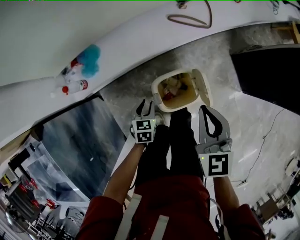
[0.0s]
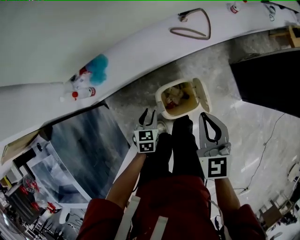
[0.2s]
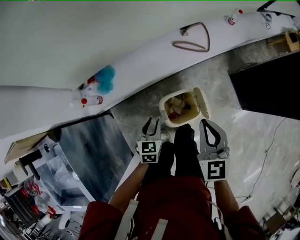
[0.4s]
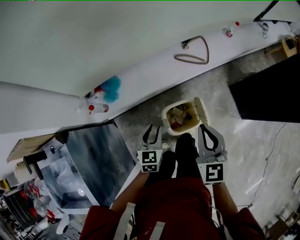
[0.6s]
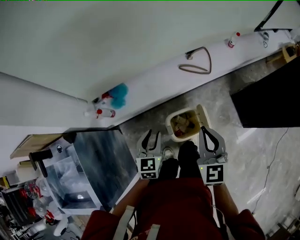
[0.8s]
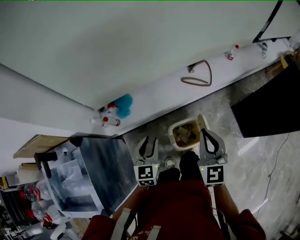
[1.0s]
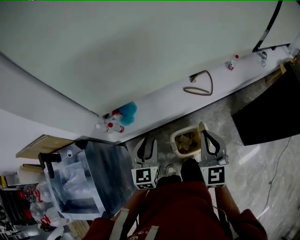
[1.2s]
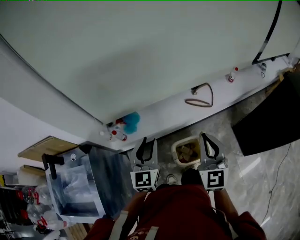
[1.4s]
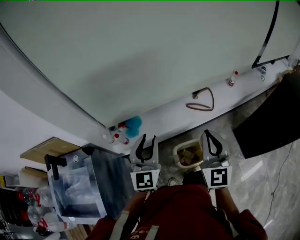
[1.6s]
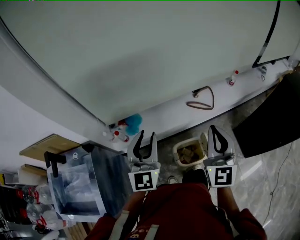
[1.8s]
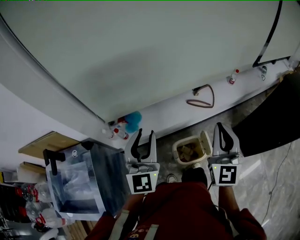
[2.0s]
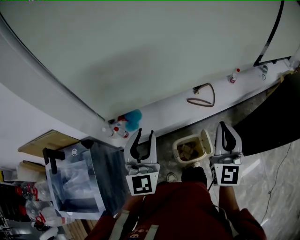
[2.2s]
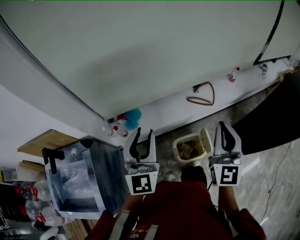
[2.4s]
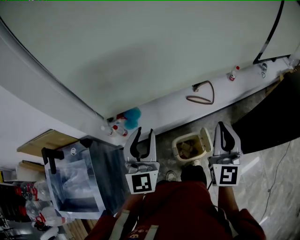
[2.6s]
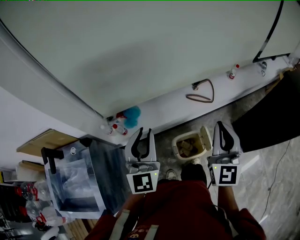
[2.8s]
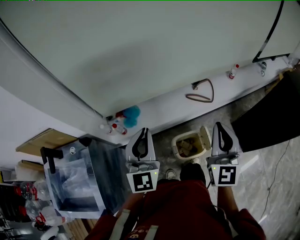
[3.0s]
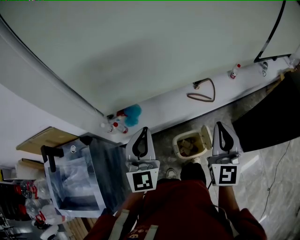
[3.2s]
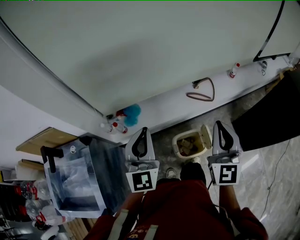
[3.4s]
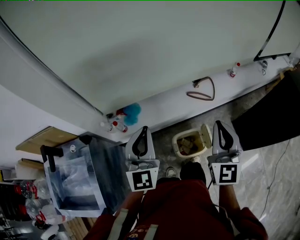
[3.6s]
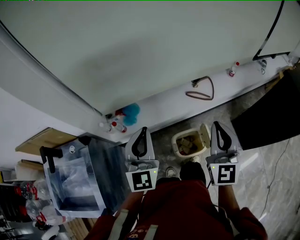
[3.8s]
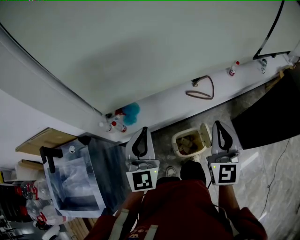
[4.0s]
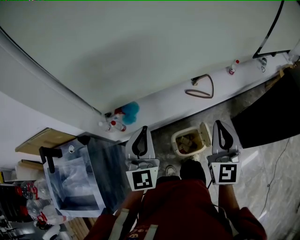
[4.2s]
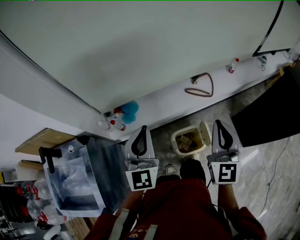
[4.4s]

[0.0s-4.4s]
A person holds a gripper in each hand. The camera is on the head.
0.0s to 1.4s: The right gripper travels upward by about 25 cm, and turns by about 30 degrees; the left gripper moves upward, some 40 cm, and tips its fingers upward by some 40 degrees.
1.4s to 3.0s: The right gripper heads upward, covering roughly 5 cm, while the left gripper shifts some 10 cm upward, and closes.
3.0s to 4.4s: There are only small adjustments of the grippers.

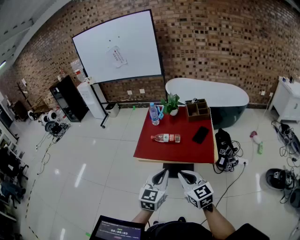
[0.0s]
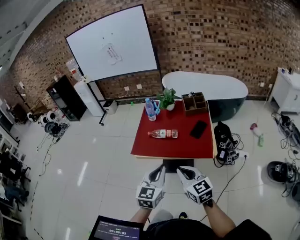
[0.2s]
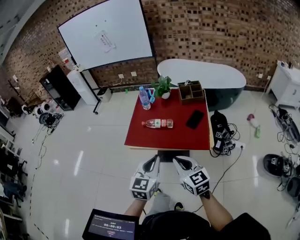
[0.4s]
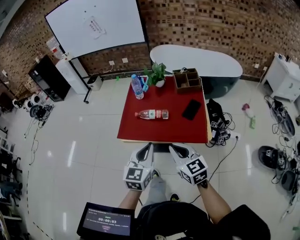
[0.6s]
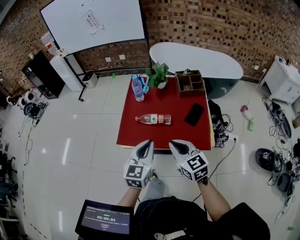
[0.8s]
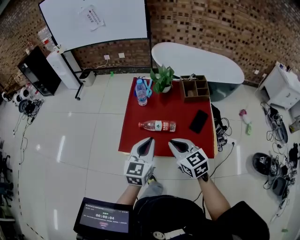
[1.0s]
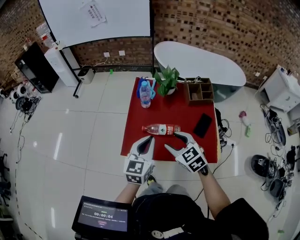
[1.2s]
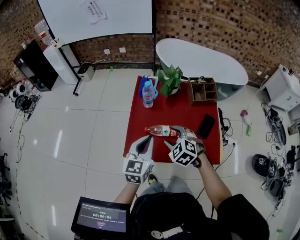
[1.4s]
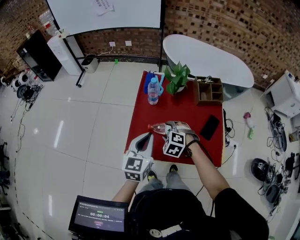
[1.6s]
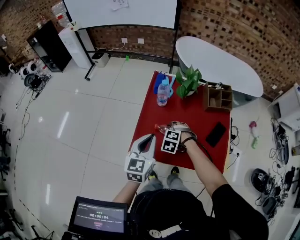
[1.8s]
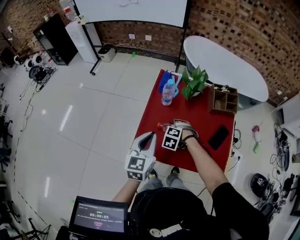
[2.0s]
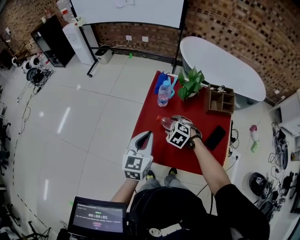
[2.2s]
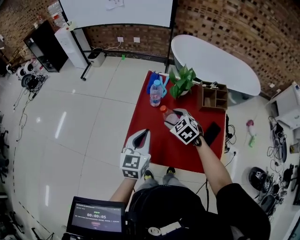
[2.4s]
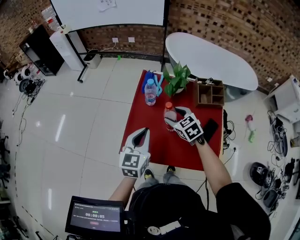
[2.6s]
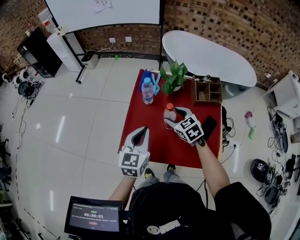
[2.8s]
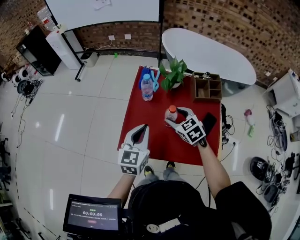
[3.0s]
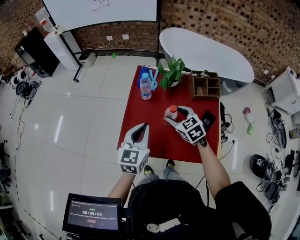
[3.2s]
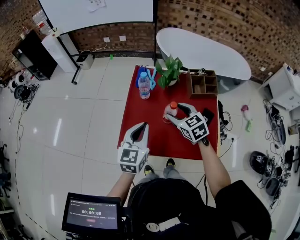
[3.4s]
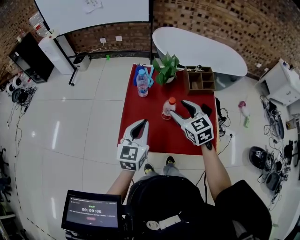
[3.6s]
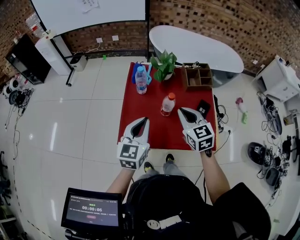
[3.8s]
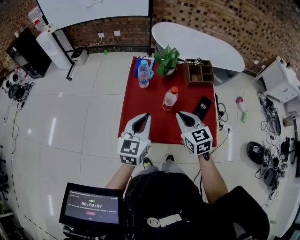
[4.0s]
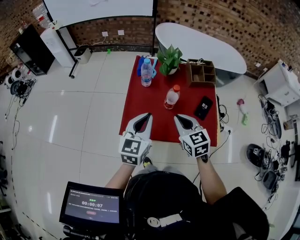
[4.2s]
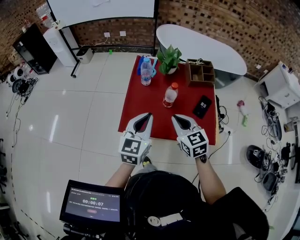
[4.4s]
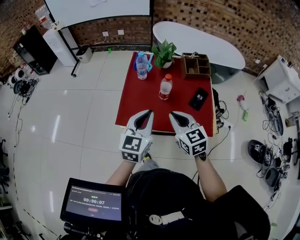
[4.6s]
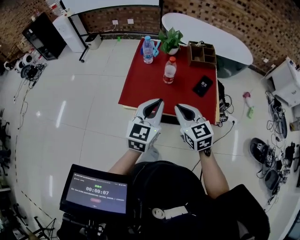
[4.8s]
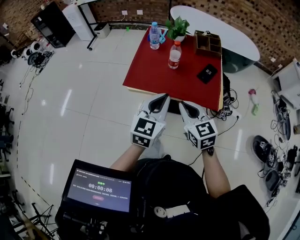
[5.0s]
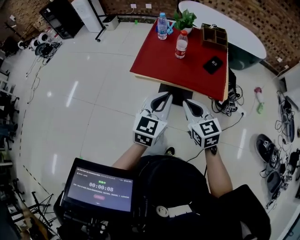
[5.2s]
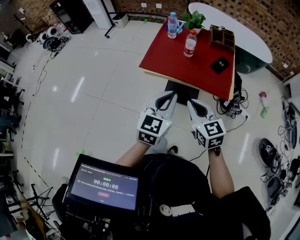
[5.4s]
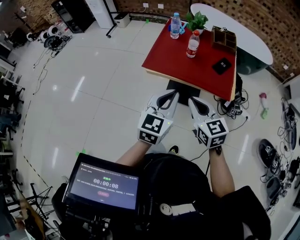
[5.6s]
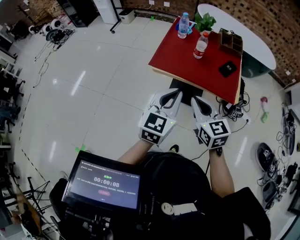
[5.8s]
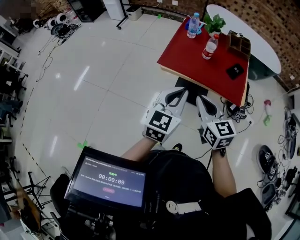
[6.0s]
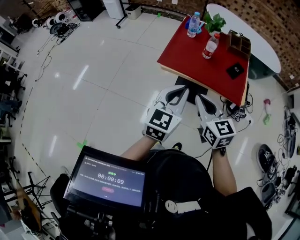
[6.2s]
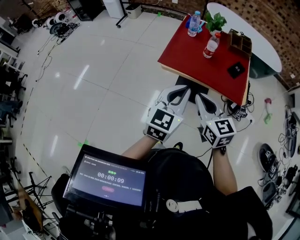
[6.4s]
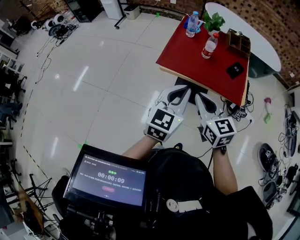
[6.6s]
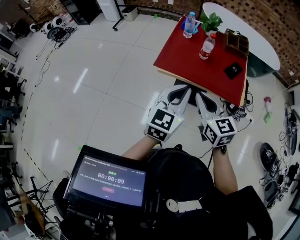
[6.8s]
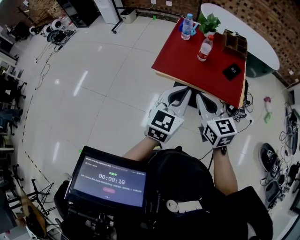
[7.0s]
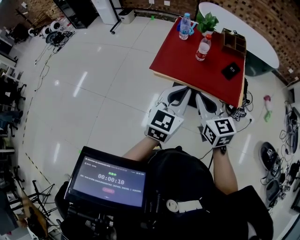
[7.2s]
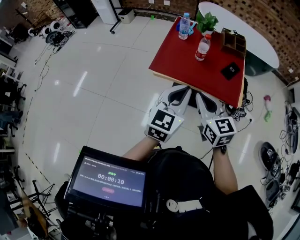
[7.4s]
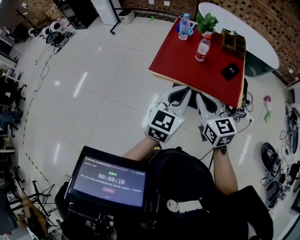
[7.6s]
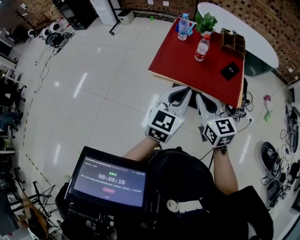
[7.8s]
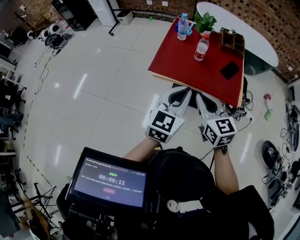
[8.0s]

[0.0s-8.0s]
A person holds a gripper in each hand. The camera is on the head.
0.0s to 1.6s: The left gripper heads forward, covering about 35 cm. The right gripper moves forward and downward, some 40 cm, tips its fingers downward by roughly 50 degrees, and opens its fingers.
1.6s to 3.2s: The right gripper is displaced to the right and upward by some 10 cm, and turns by about 40 degrees.
3.2s to 4.8s: The grippers both shift backward by about 20 cm. The right gripper closes its fingers.
4.8s to 6.4s: Both grippers move backward and to the left, some 20 cm.
6.4s to 8.0s: The left gripper heads to the right, covering about 5 cm. The right gripper changes place by approximately 5 cm.

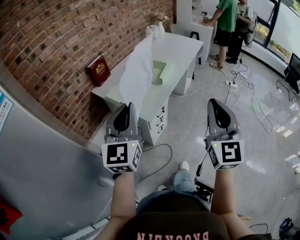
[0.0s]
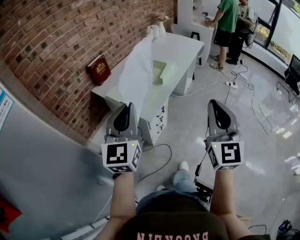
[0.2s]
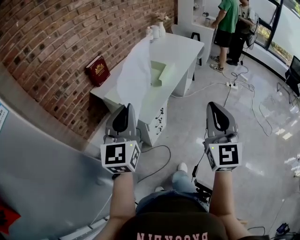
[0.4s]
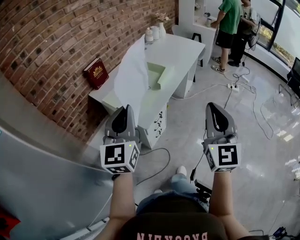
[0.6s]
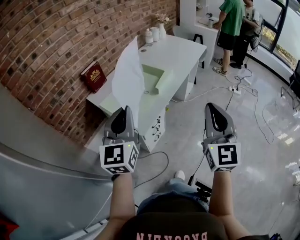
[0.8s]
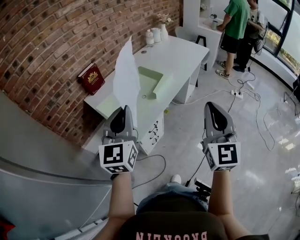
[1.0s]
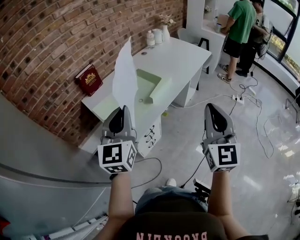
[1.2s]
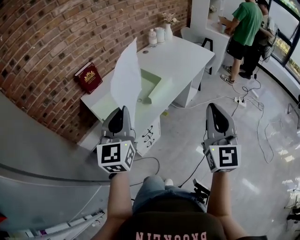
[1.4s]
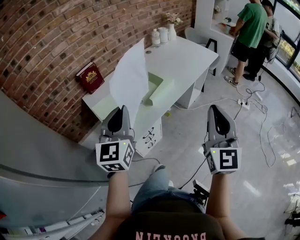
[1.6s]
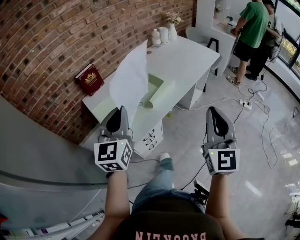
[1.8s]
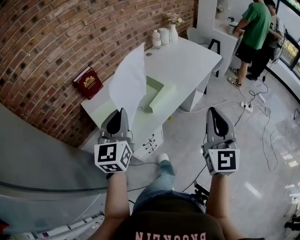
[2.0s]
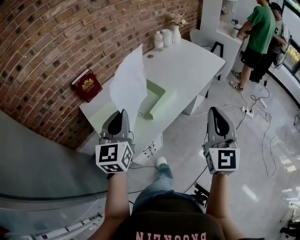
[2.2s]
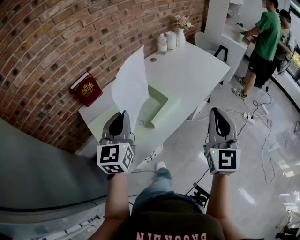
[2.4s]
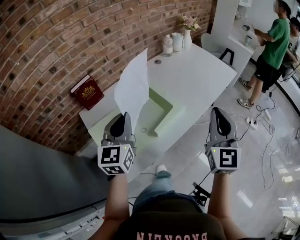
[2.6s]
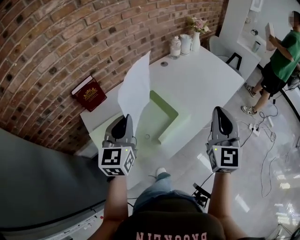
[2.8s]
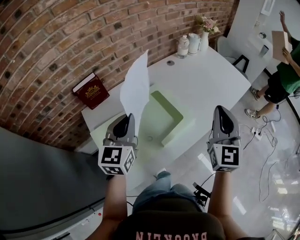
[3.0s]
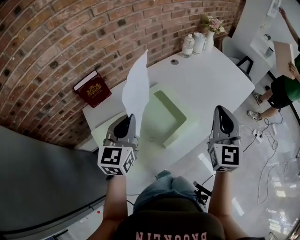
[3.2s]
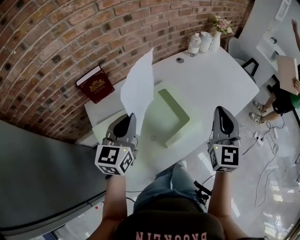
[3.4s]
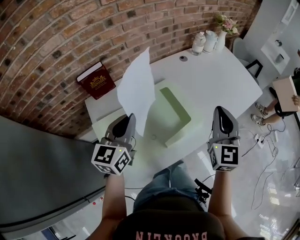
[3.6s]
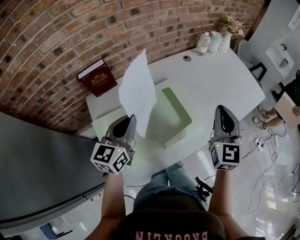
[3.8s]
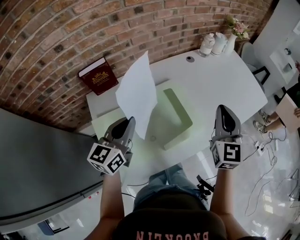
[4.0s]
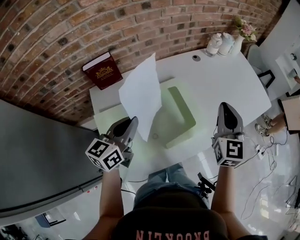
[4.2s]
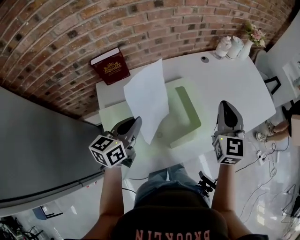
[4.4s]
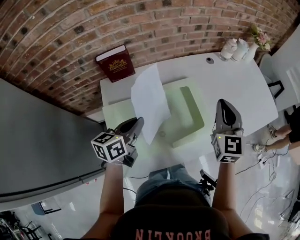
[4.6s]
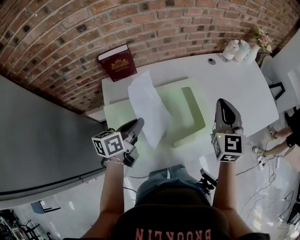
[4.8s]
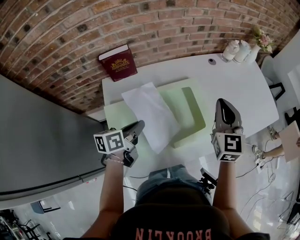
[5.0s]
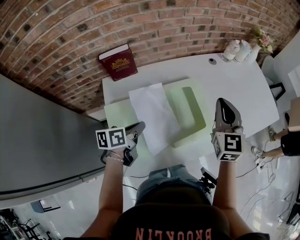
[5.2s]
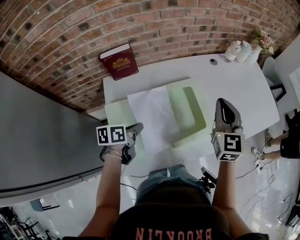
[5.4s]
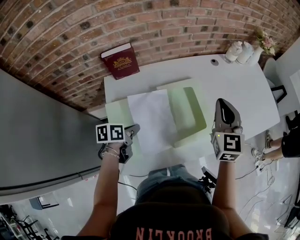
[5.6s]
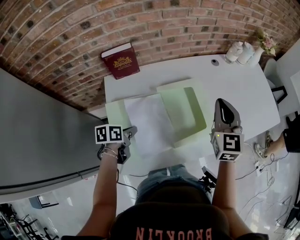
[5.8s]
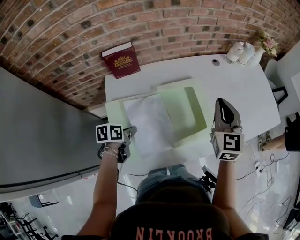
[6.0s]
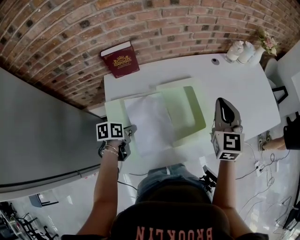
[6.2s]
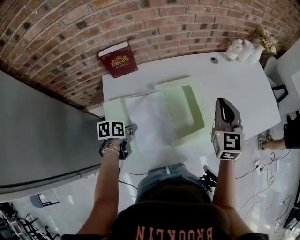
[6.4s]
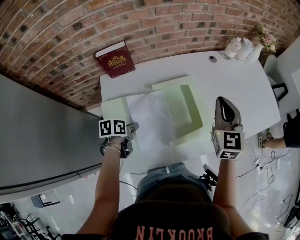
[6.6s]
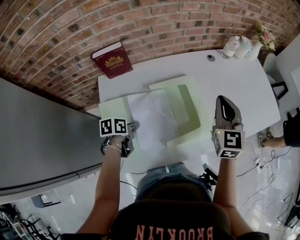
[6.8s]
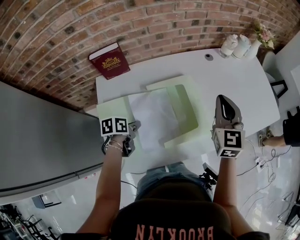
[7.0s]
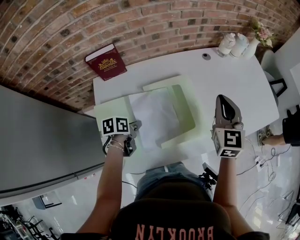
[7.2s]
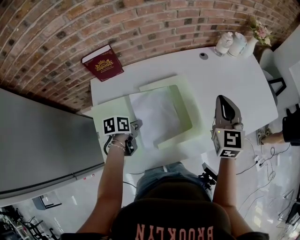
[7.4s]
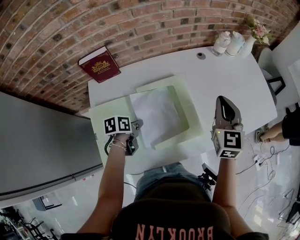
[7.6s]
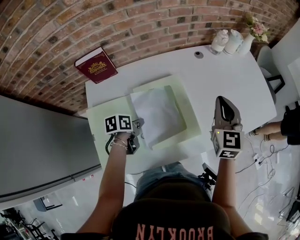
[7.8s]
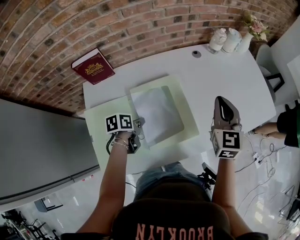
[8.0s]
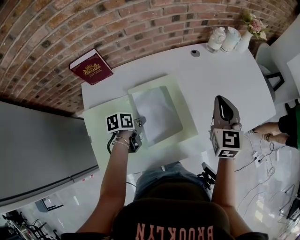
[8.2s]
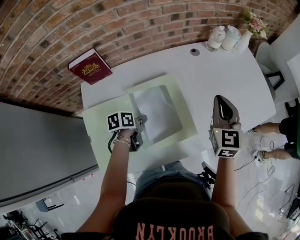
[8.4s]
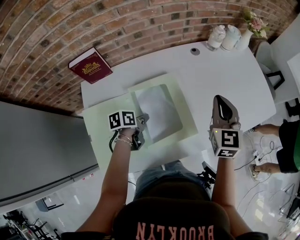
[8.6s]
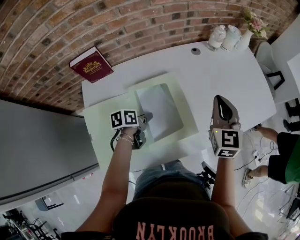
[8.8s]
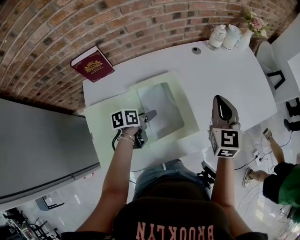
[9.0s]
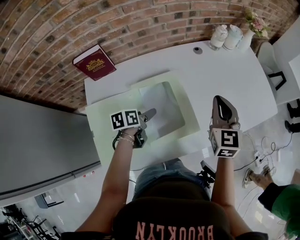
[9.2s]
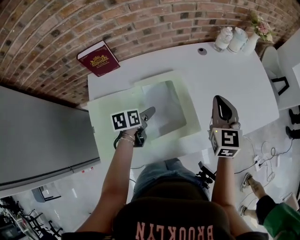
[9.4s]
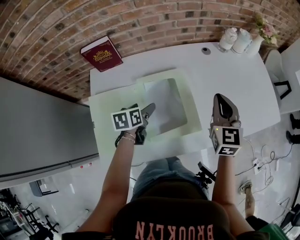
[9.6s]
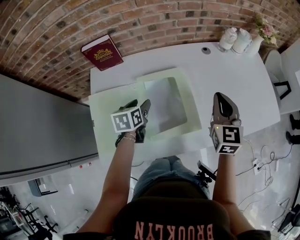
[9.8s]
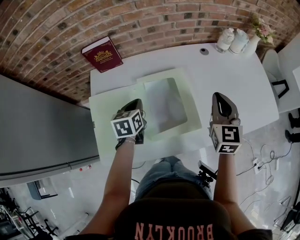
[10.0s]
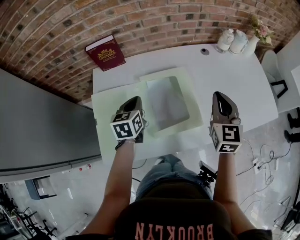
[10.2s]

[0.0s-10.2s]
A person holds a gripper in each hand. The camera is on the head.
0.0s to 1.4s: The two grippers go approximately 25 cm forward and to the right.
1.4s to 3.0s: Both grippers travel together forward, about 35 cm.
3.0s to 4.4s: The left gripper shifts roughly 10 cm downward, and turns by roughly 30 degrees; the right gripper heads forward, to the left and downward, covering some 15 cm.
4.4s to 5.8s: The right gripper moves to the left, about 5 cm. Meanwhile the left gripper travels downward by approximately 15 cm, and rotates roughly 40 degrees.
5.8s to 7.2s: The right gripper heads to the right, covering about 5 cm; the left gripper is displaced forward and to the right by about 10 cm.
7.2s to 8.8s: The left gripper heads to the right and forward, covering approximately 10 cm. Meanwhile the right gripper is displaced to the right by some 5 cm.
8.8s to 10.2s: The left gripper is displaced upward by approximately 10 cm, turns by about 50 degrees, and opens and closes again.

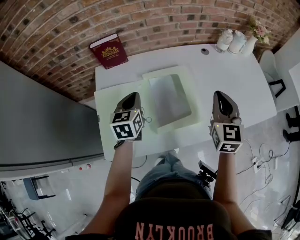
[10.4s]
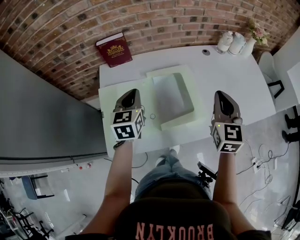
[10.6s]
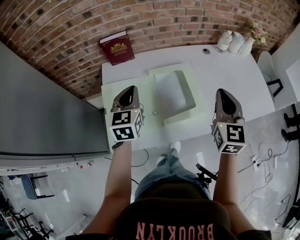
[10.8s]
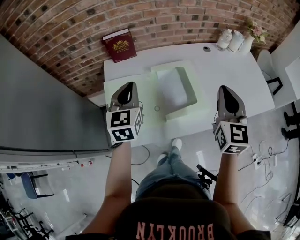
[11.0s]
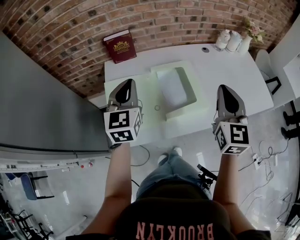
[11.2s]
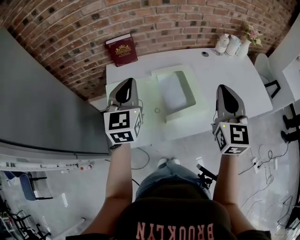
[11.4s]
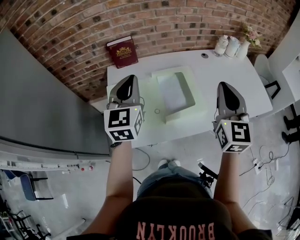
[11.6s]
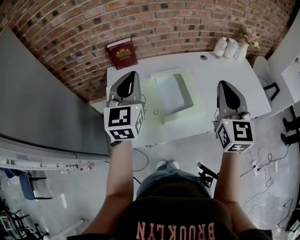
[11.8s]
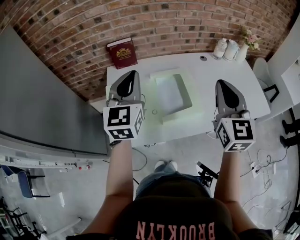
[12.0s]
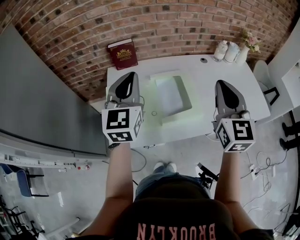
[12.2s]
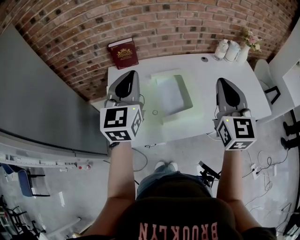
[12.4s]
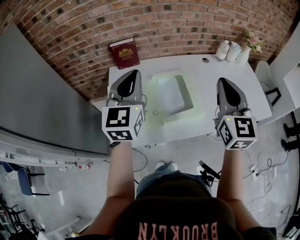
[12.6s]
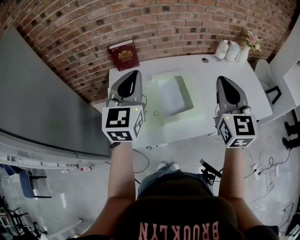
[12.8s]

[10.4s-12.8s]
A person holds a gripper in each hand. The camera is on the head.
10.4s to 11.6s: The grippers both shift upward and backward by approximately 20 cm. The left gripper rotates about 30 degrees.
11.6s to 12.8s: The left gripper moves about 5 cm.
